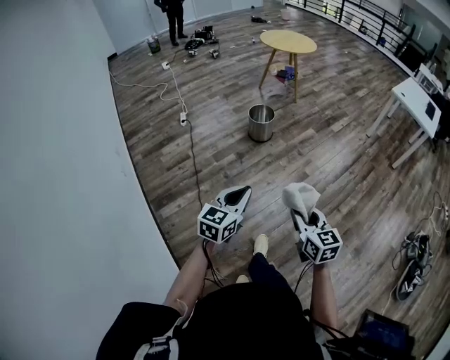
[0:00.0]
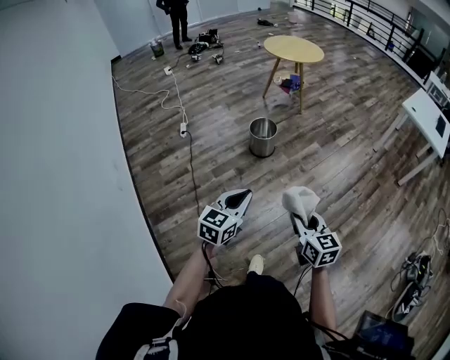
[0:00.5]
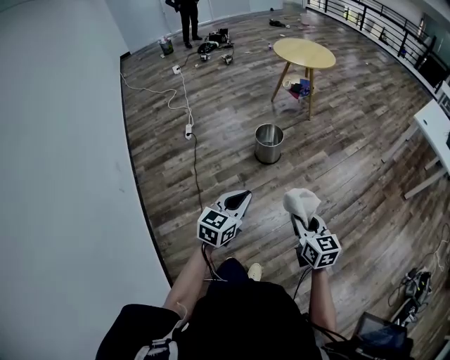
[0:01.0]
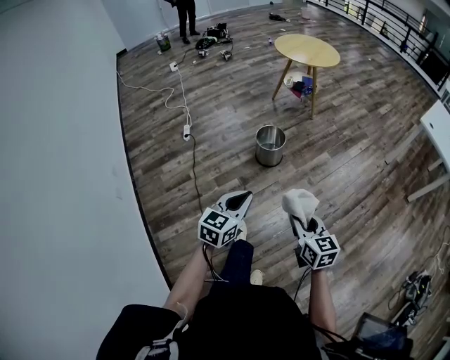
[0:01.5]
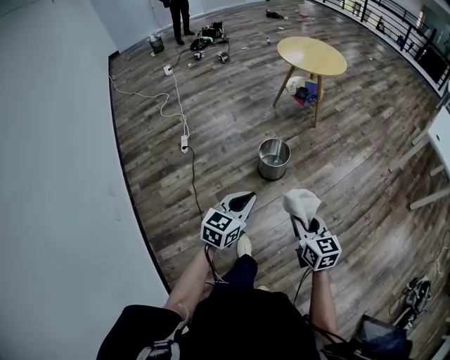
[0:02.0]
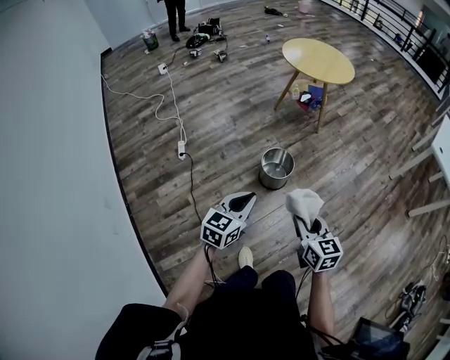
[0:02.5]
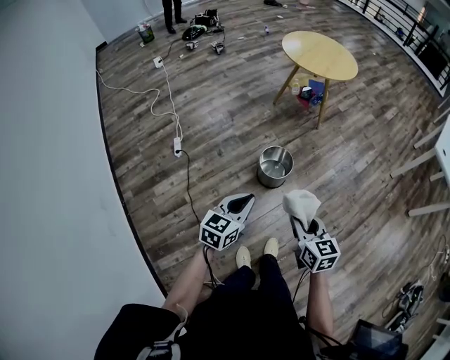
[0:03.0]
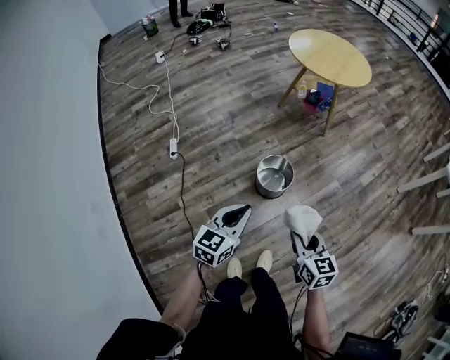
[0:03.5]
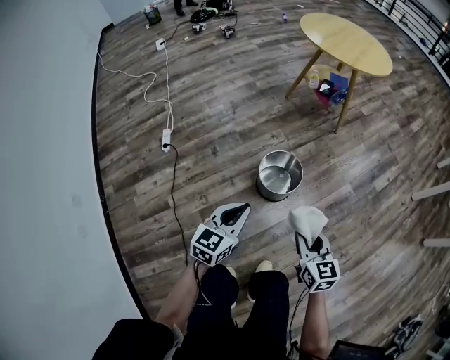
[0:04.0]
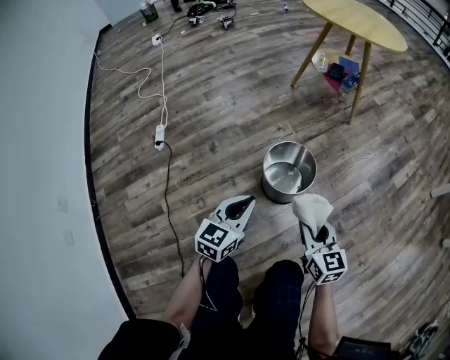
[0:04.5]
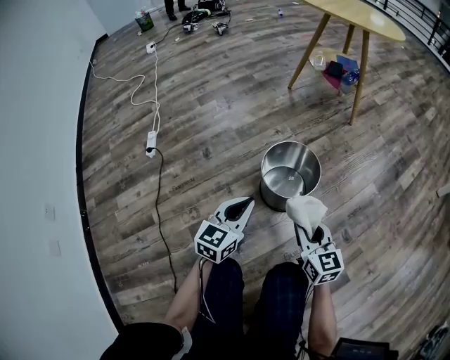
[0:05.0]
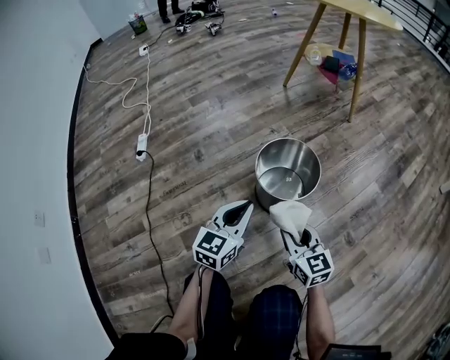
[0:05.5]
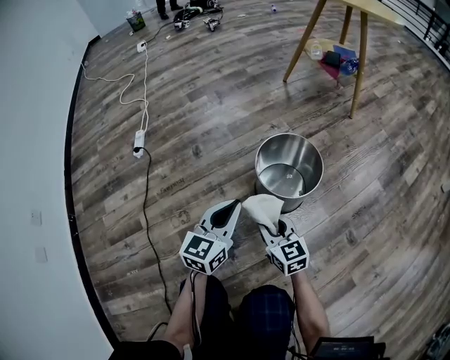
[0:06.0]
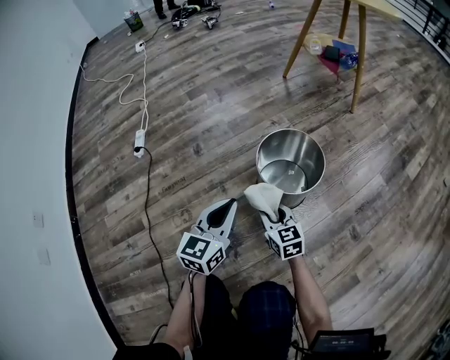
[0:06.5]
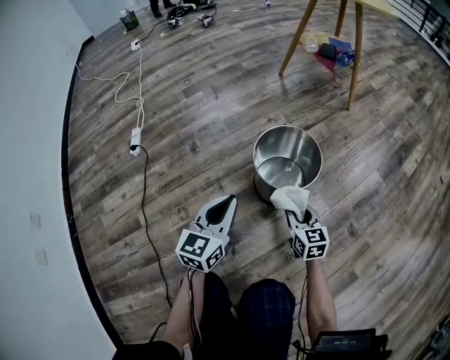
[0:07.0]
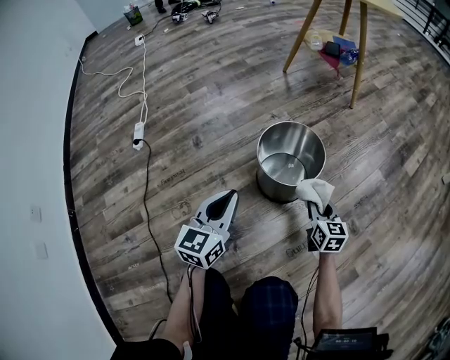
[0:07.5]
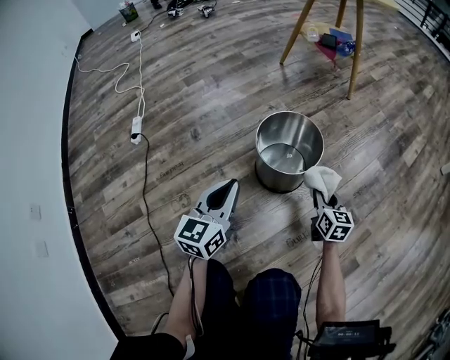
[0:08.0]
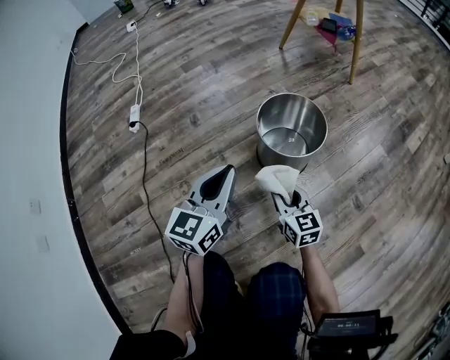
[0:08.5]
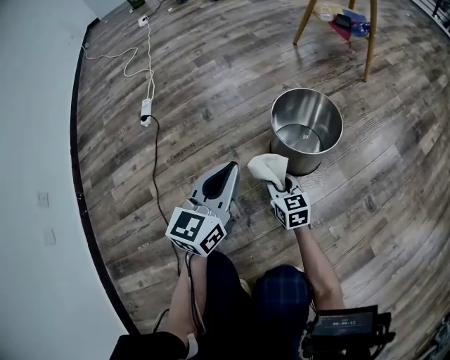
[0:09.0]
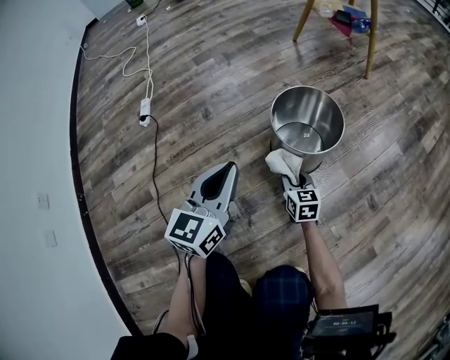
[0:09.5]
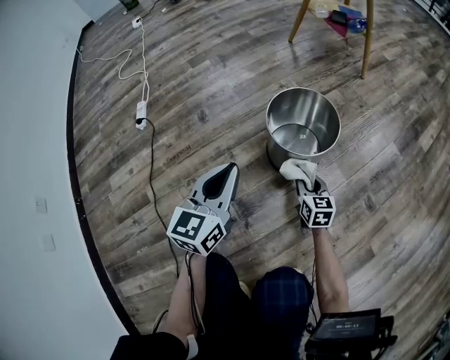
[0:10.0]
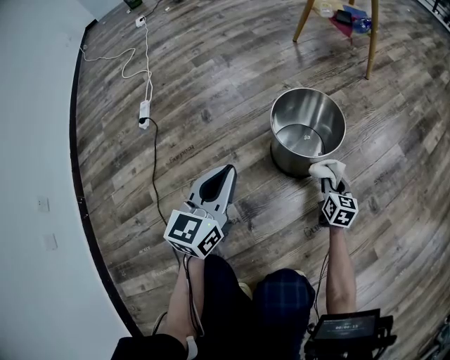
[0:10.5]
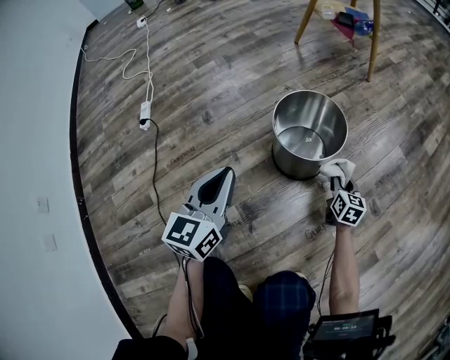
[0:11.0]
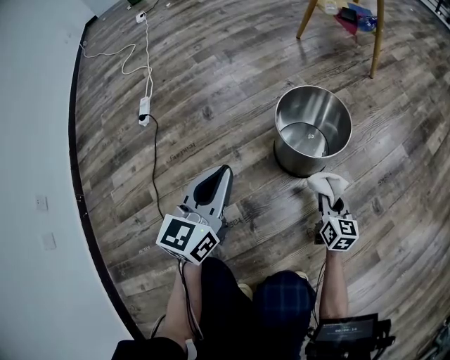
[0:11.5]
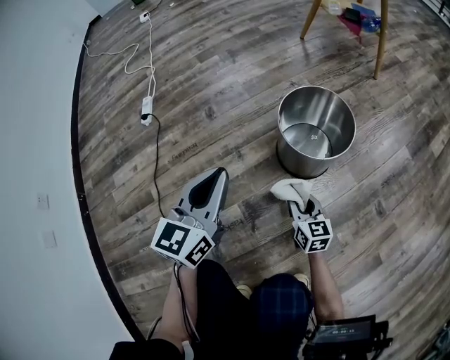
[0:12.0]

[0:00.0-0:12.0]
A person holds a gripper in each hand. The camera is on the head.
0:00.0 to 0:02.0: Both grippers are carried forward, roughly 40 cm.
0:02.0 to 0:04.0: Both grippers travel together forward and downward, about 35 cm.
0:04.0 to 0:06.0: Both grippers move downward, about 35 cm.
0:06.0 to 0:08.0: The right gripper shifts about 20 cm to the right, and changes its angle by roughly 30 degrees.
0:08.0 to 0:10.0: The right gripper moves to the left and downward, roughly 10 cm.
0:10.0 to 0:12.0: The right gripper is displaced backward by roughly 5 cm, and reaches approximately 10 cm to the right, then returns.

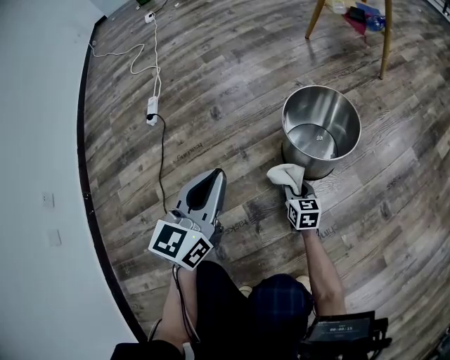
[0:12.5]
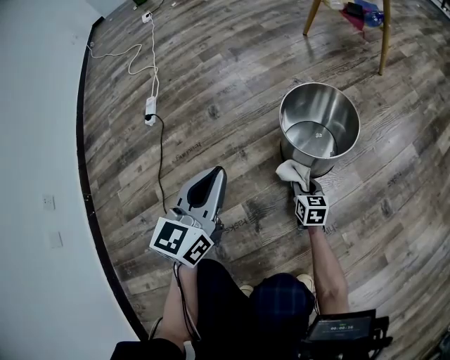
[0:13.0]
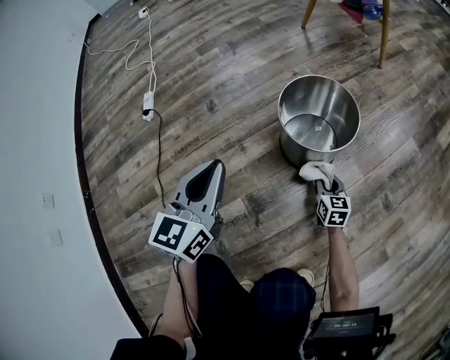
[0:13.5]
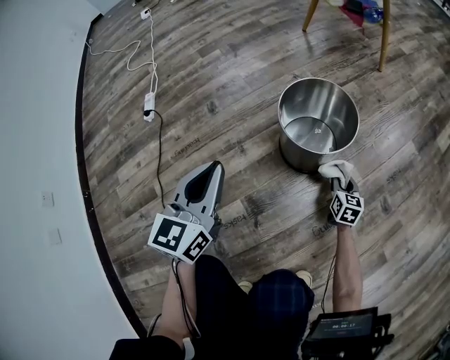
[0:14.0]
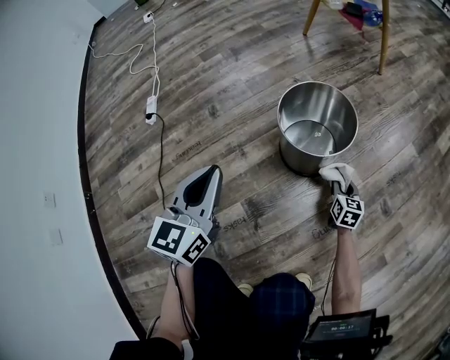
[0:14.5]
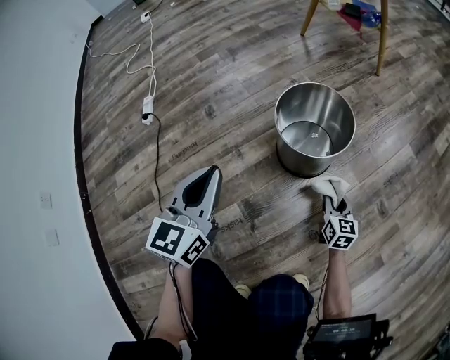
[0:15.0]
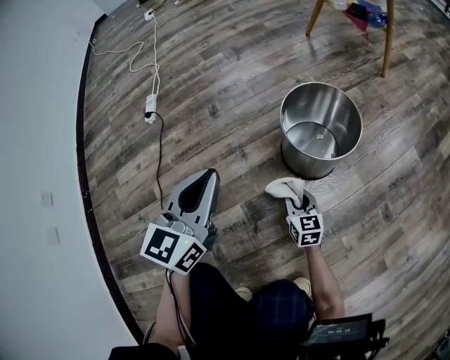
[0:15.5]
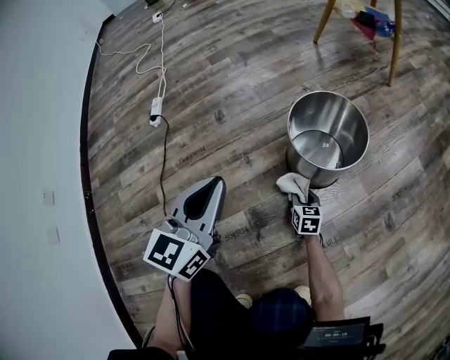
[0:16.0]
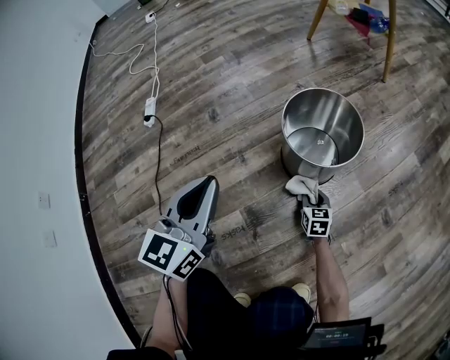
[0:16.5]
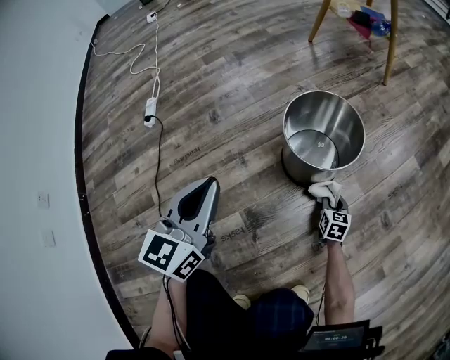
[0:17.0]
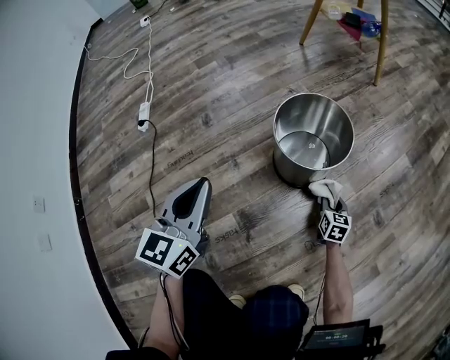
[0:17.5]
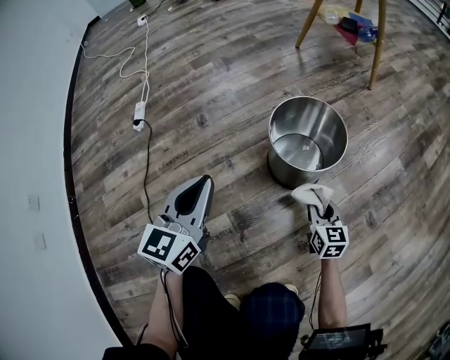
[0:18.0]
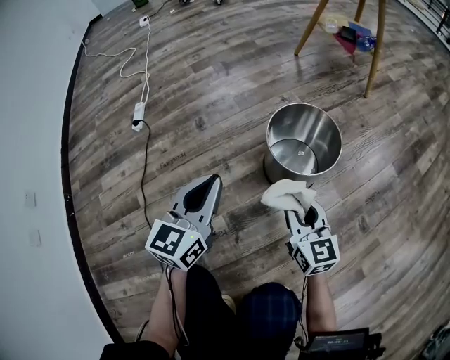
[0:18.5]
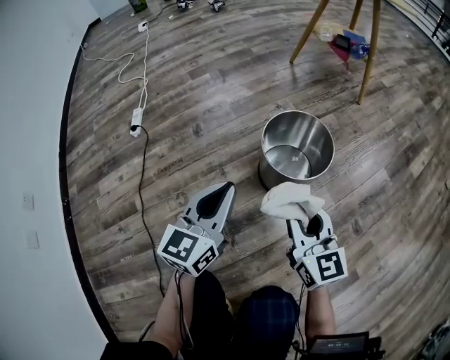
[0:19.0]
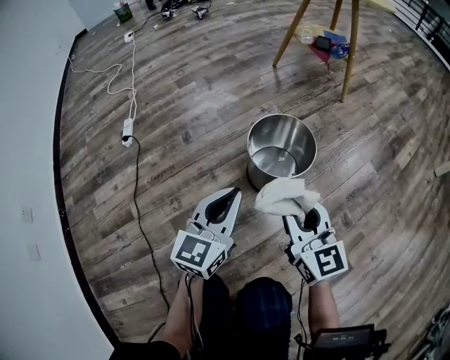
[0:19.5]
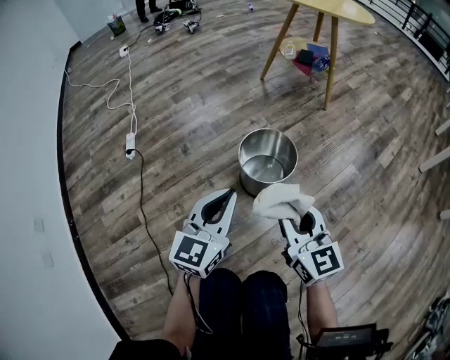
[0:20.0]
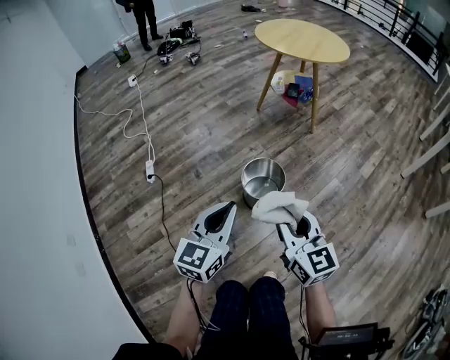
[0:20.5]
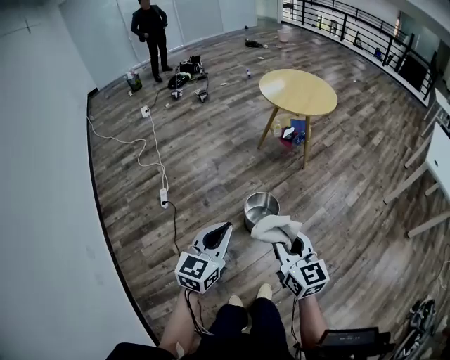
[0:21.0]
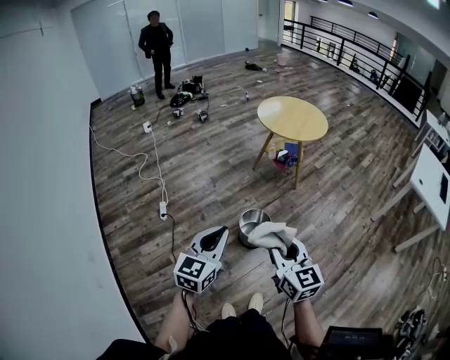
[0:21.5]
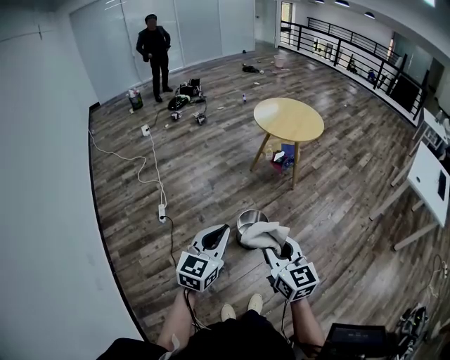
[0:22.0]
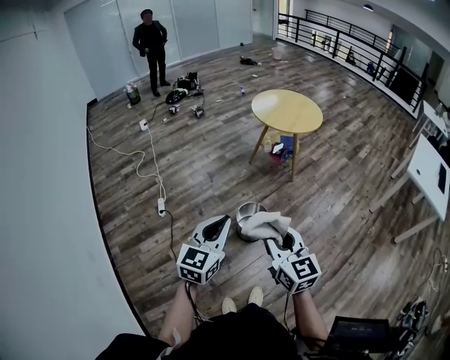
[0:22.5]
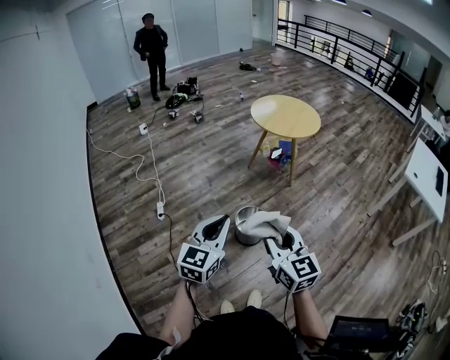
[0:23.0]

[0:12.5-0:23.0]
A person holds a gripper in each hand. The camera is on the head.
0:12.5 to 0:14.5: The right gripper is displaced to the right by about 20 cm.
0:14.5 to 0:16.5: The right gripper travels to the left and downward by some 15 cm.
0:16.5 to 0:19.0: The right gripper shifts roughly 35 cm upward, and points its fingers some 30 degrees further upward. The left gripper heads to the right, covering roughly 5 cm.
0:19.0 to 0:21.0: Both grippers move upward, approximately 50 cm.
0:21.0 to 0:23.0: Both grippers travel together upward, roughly 10 cm.

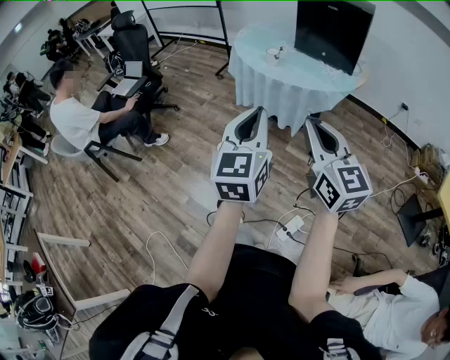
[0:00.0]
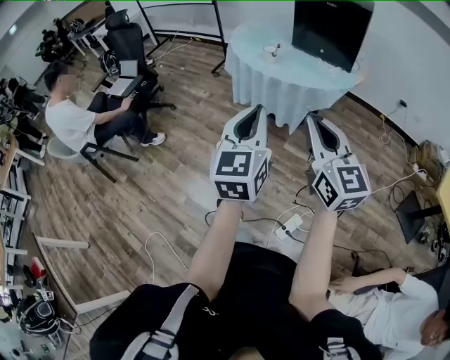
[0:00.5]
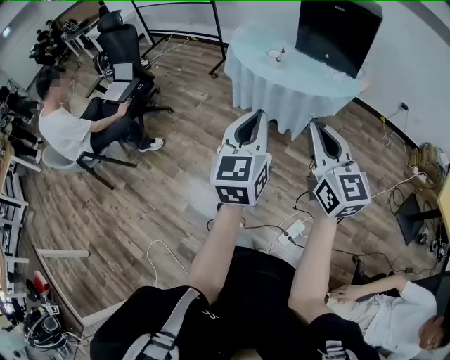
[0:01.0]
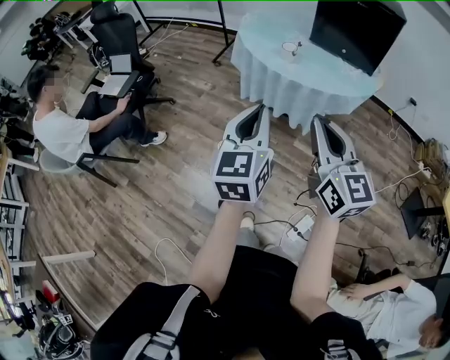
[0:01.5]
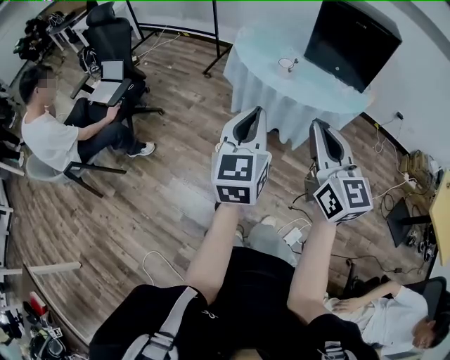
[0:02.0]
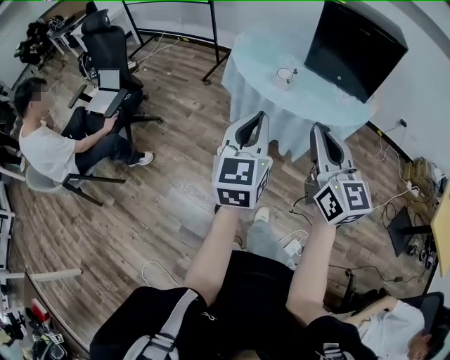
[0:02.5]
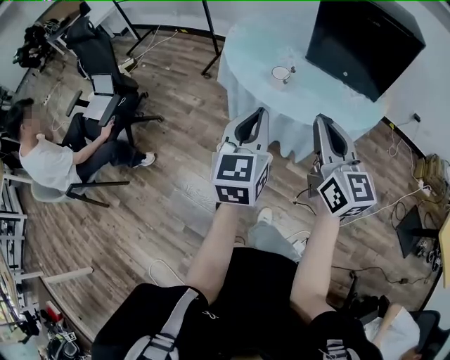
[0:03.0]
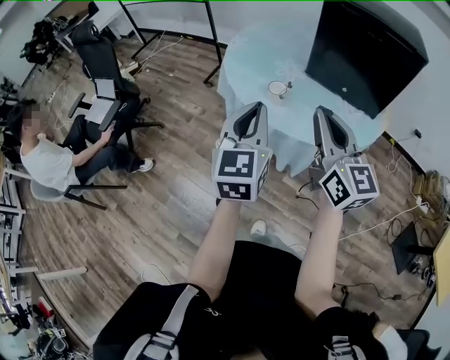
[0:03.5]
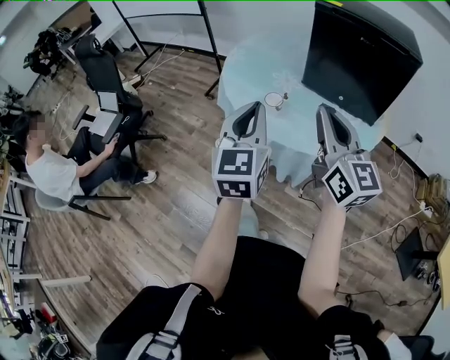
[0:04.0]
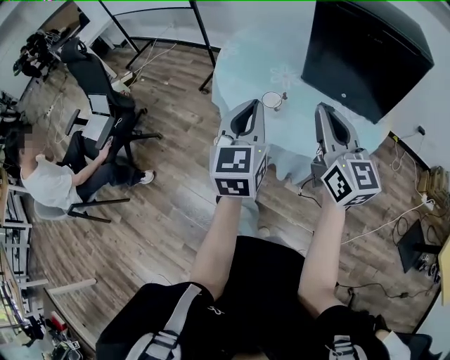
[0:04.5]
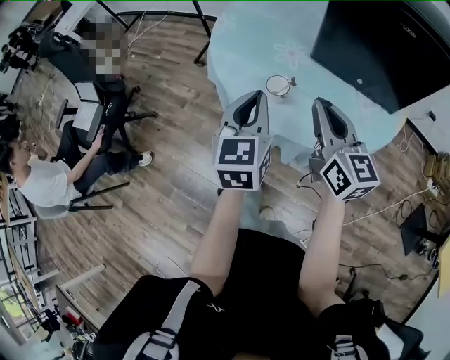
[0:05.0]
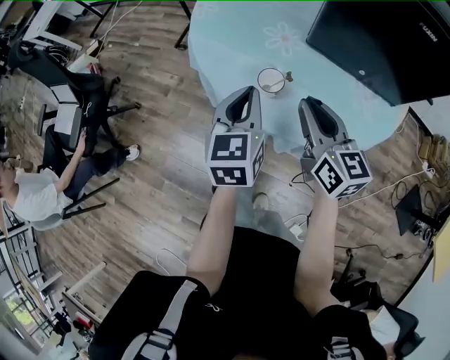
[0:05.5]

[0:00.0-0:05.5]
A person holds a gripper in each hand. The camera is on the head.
0:00.0 to 0:02.0: Both grippers move forward and to the left, approximately 20 cm.
0:02.0 to 0:03.5: The two grippers go some 25 cm forward and to the right.
0:03.5 to 0:05.5: The two grippers go roughly 25 cm forward and downward. The right gripper swivels roughly 20 degrees.
